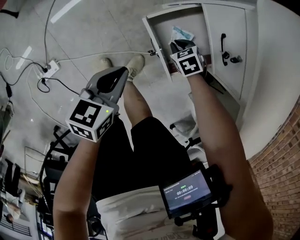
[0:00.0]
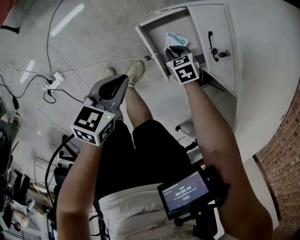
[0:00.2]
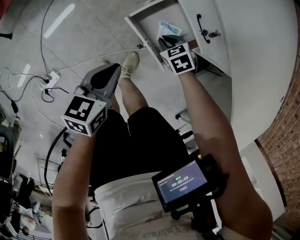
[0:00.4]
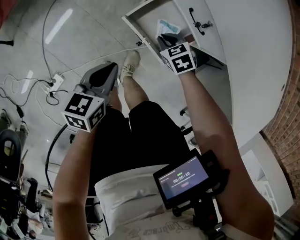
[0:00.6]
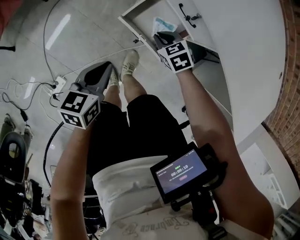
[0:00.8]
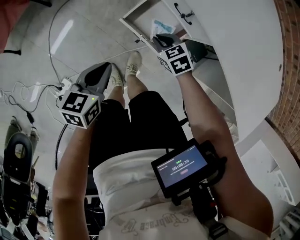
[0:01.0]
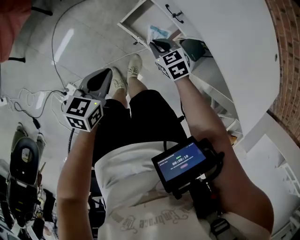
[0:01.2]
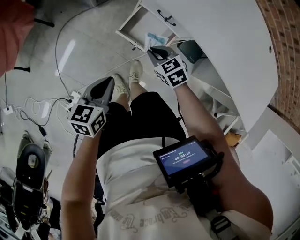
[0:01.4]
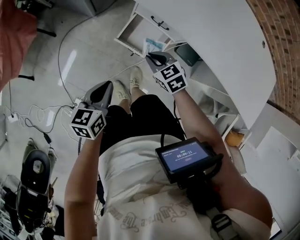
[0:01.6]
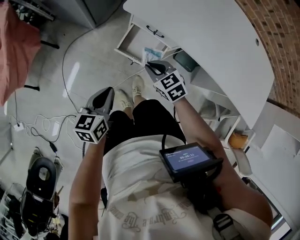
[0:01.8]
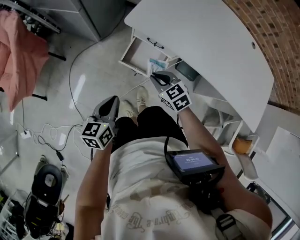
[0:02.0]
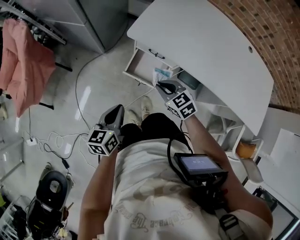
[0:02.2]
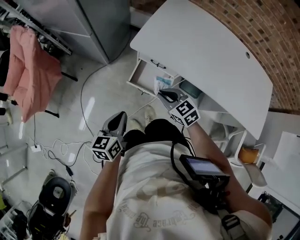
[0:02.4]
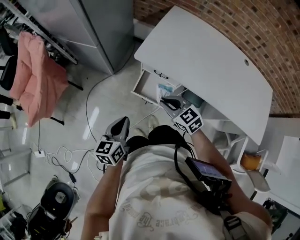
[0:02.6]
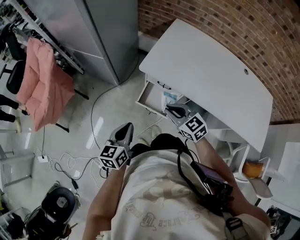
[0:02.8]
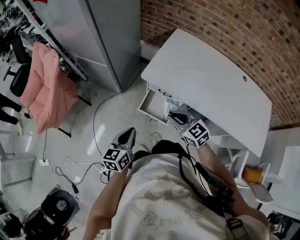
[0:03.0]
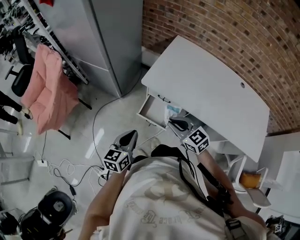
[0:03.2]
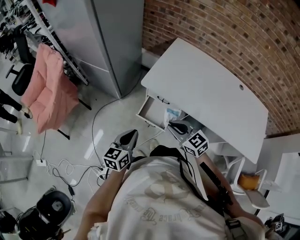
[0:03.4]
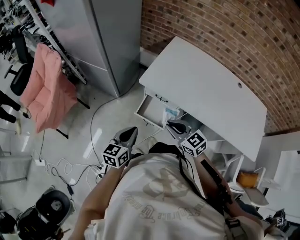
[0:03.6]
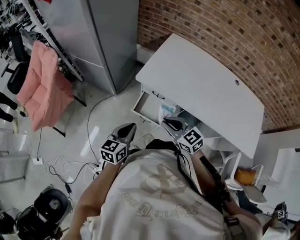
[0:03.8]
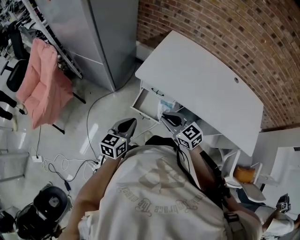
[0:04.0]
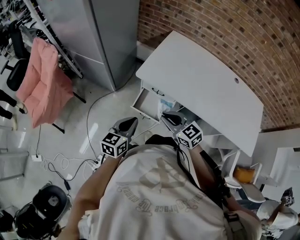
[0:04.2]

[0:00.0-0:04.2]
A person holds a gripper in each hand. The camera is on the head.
0:00.0 to 0:01.4: The right gripper moves upward, about 30 cm, and rotates about 30 degrees. Meanwhile the left gripper is displaced upward by roughly 20 cm.
0:01.4 to 0:02.8: Both grippers travel together upward, roughly 25 cm. The right gripper rotates approximately 20 degrees.
0:02.8 to 0:04.2: The right gripper goes some 5 cm upward. Meanwhile the left gripper moves to the right, approximately 5 cm.

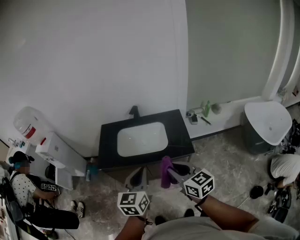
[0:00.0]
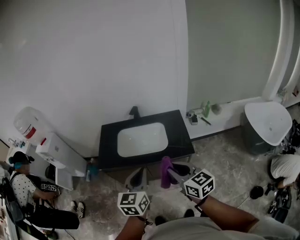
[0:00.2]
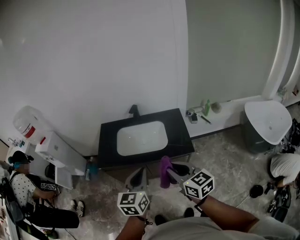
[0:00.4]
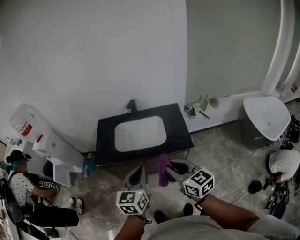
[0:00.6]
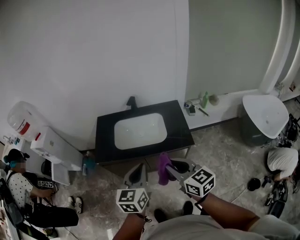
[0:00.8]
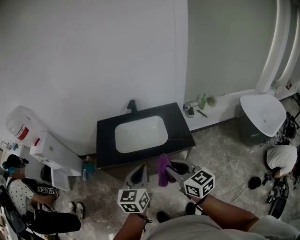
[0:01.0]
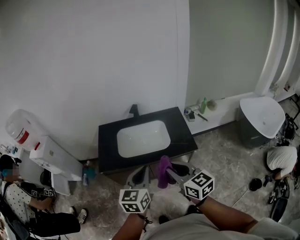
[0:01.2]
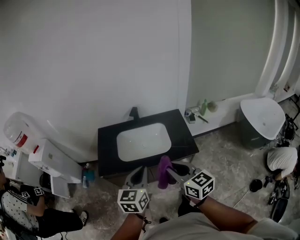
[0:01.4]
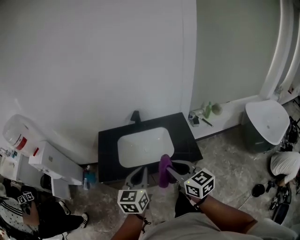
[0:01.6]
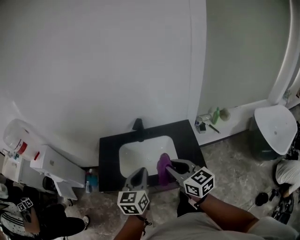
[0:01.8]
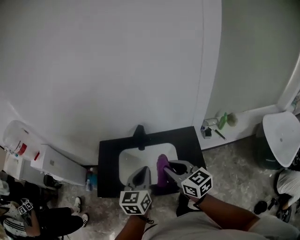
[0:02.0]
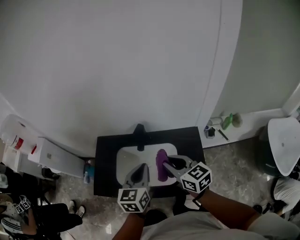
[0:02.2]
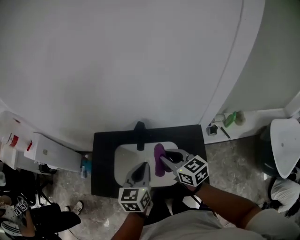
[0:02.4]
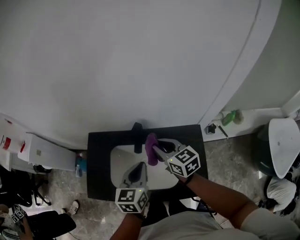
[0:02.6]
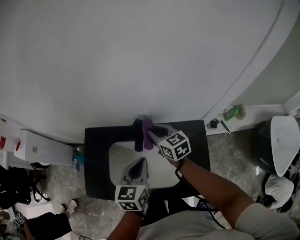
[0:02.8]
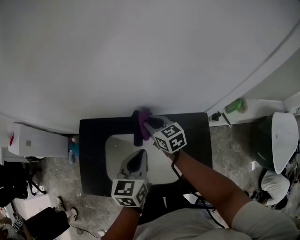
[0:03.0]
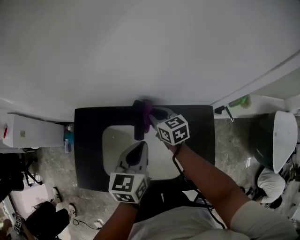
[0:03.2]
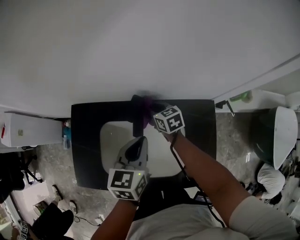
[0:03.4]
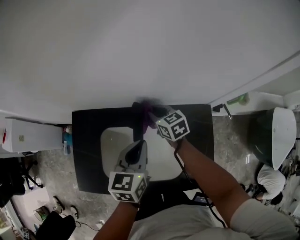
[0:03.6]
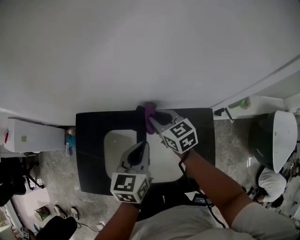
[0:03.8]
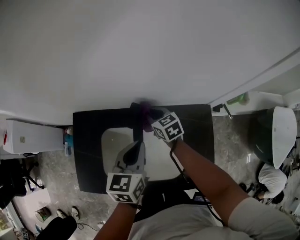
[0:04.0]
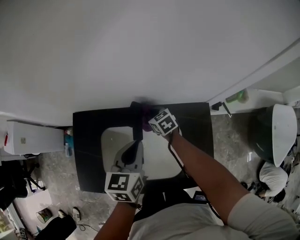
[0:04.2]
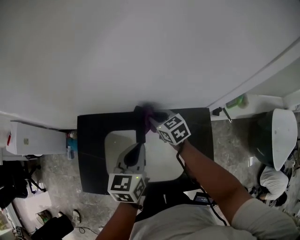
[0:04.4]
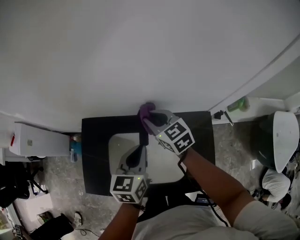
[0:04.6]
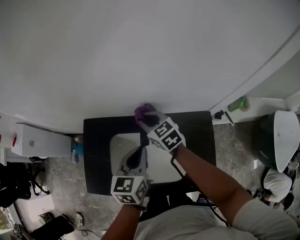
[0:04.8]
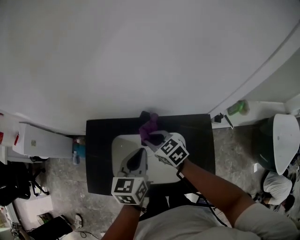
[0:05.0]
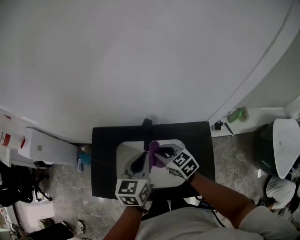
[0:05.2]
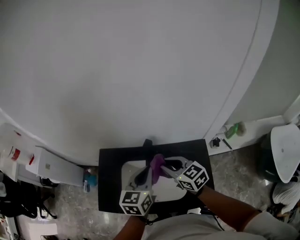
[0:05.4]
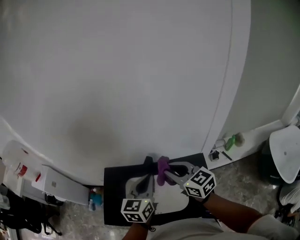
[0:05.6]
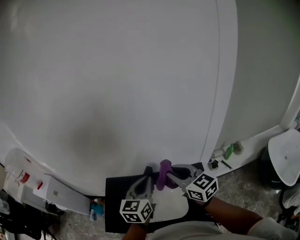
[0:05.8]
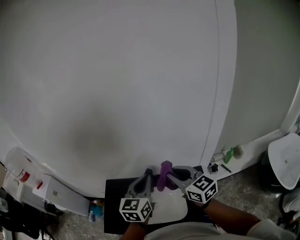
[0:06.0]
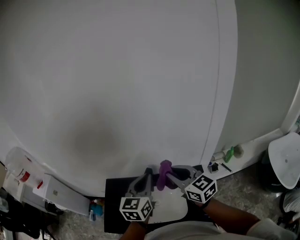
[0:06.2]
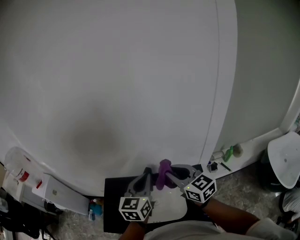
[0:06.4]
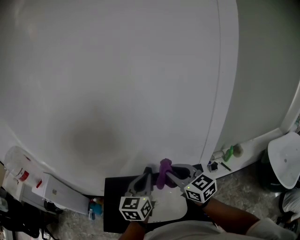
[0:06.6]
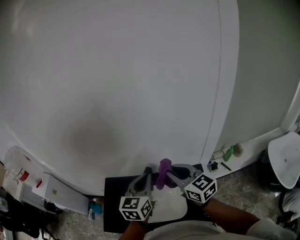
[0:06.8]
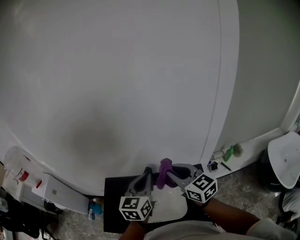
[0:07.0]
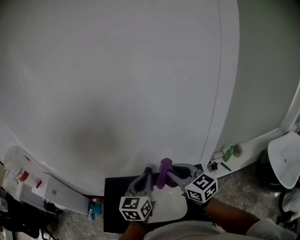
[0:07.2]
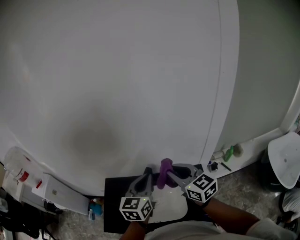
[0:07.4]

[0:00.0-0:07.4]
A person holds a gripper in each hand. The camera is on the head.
0:00.0 to 0:01.4: The left gripper shifts approximately 10 cm forward and to the left, while the right gripper is displaced to the left and forward by some 10 cm.
0:01.4 to 0:03.0: Both grippers are carried forward, approximately 50 cm.
0:03.0 to 0:04.4: The right gripper goes up and down, some 15 cm each way, reversing 3 times.
0:04.4 to 0:06.0: The right gripper swings up and down, roughly 35 cm each way, with 2 reversals, and swivels approximately 30 degrees; the left gripper heads upward, covering roughly 25 cm, and changes its angle by approximately 20 degrees.
0:06.0 to 0:07.4: Both grippers stay put.

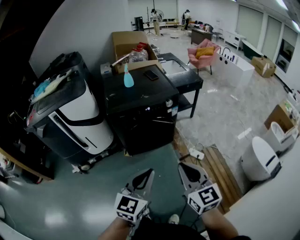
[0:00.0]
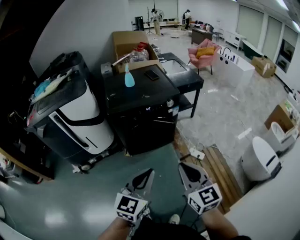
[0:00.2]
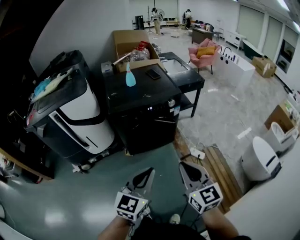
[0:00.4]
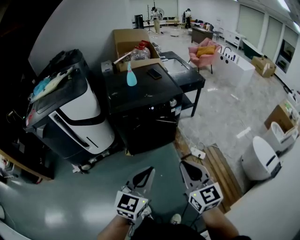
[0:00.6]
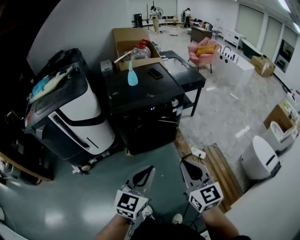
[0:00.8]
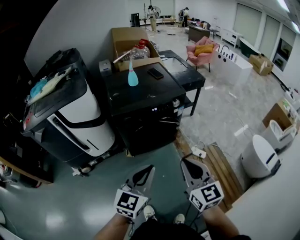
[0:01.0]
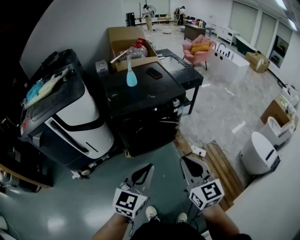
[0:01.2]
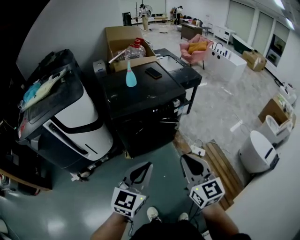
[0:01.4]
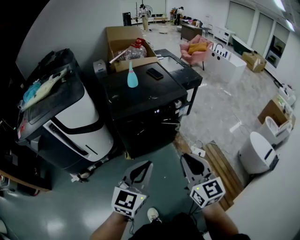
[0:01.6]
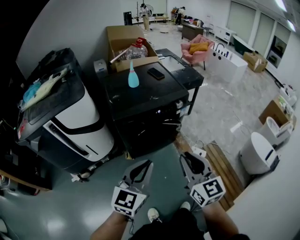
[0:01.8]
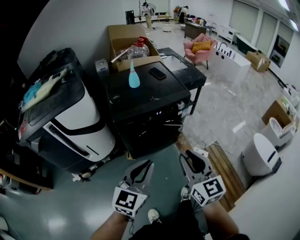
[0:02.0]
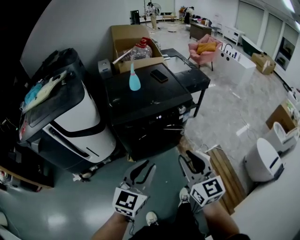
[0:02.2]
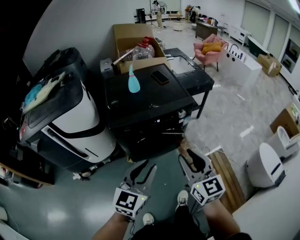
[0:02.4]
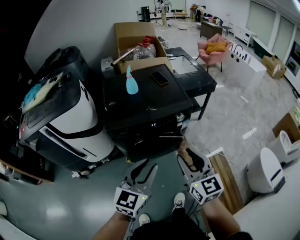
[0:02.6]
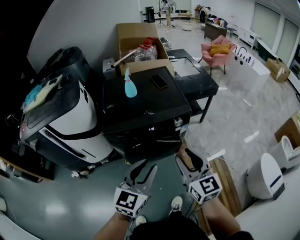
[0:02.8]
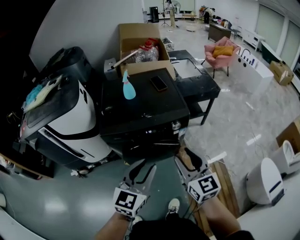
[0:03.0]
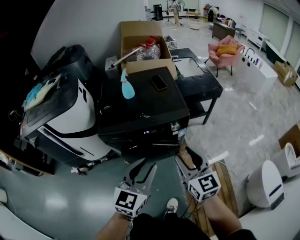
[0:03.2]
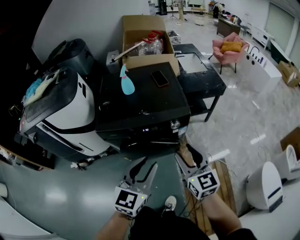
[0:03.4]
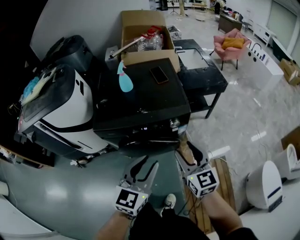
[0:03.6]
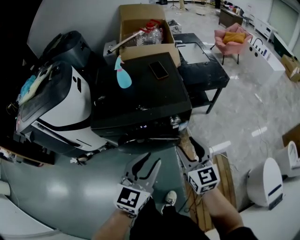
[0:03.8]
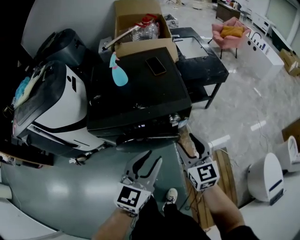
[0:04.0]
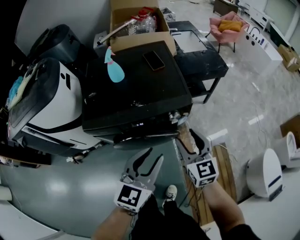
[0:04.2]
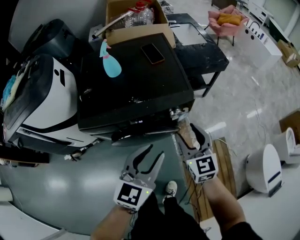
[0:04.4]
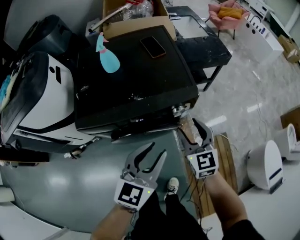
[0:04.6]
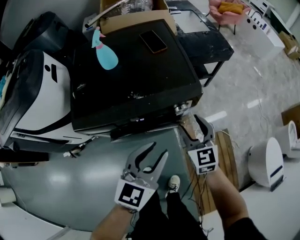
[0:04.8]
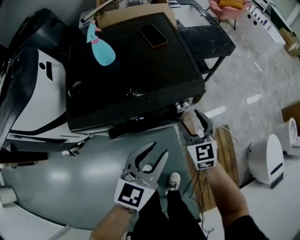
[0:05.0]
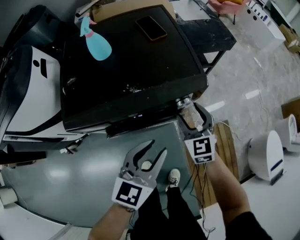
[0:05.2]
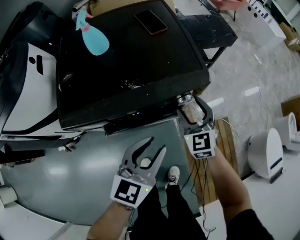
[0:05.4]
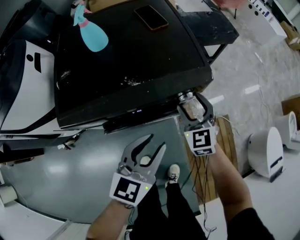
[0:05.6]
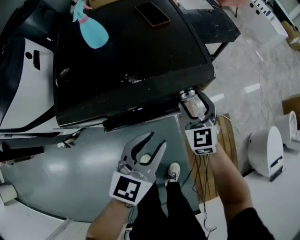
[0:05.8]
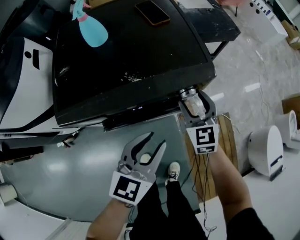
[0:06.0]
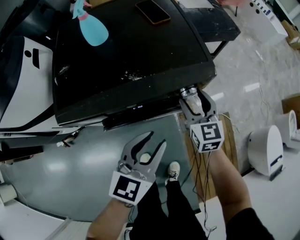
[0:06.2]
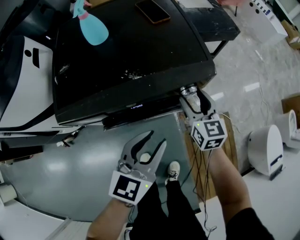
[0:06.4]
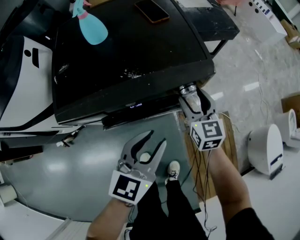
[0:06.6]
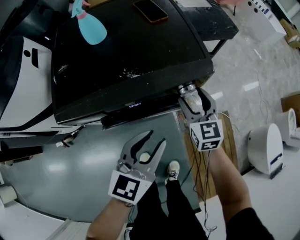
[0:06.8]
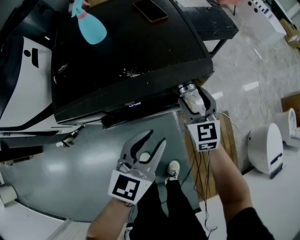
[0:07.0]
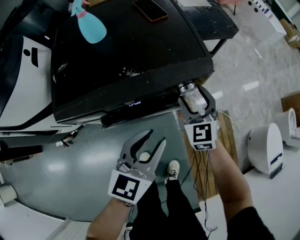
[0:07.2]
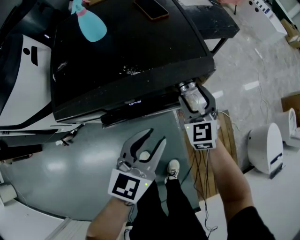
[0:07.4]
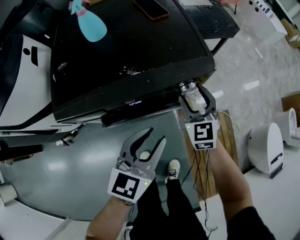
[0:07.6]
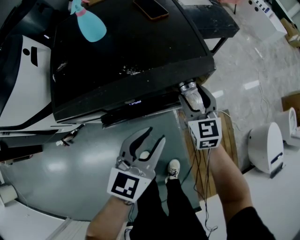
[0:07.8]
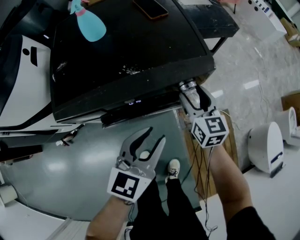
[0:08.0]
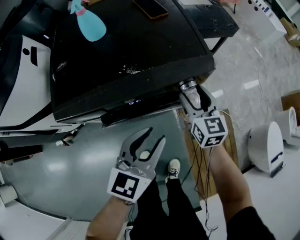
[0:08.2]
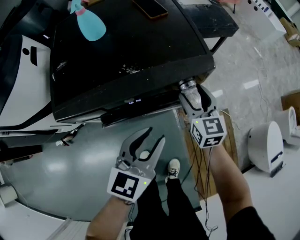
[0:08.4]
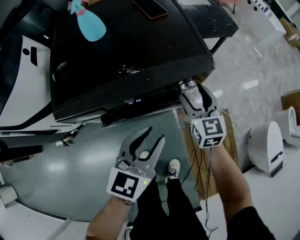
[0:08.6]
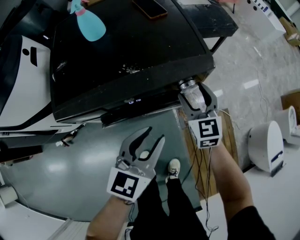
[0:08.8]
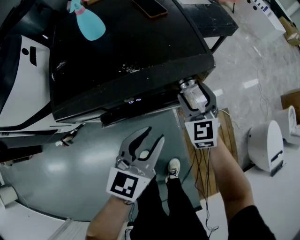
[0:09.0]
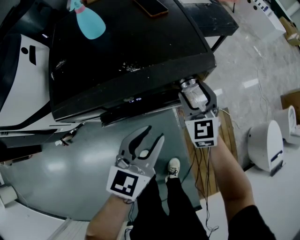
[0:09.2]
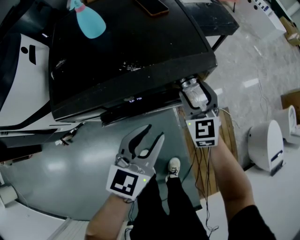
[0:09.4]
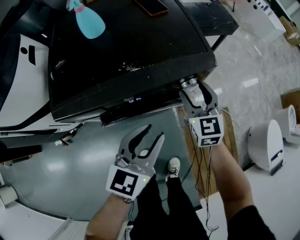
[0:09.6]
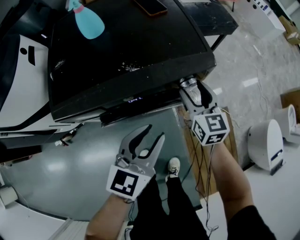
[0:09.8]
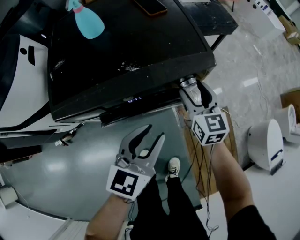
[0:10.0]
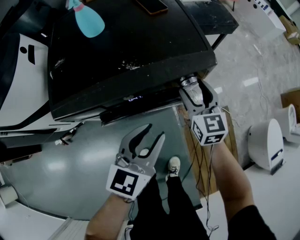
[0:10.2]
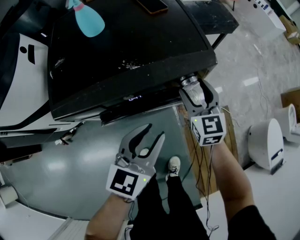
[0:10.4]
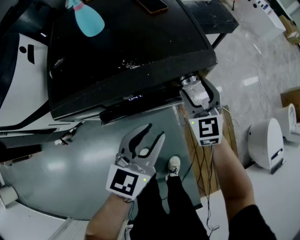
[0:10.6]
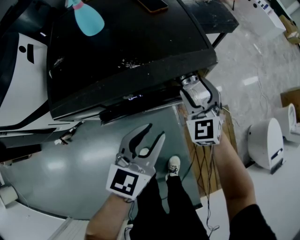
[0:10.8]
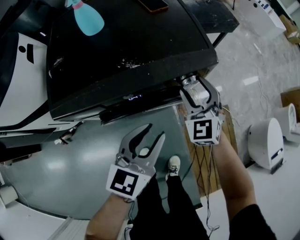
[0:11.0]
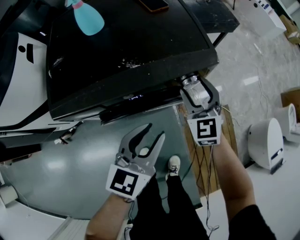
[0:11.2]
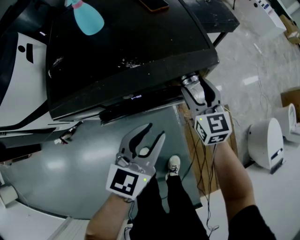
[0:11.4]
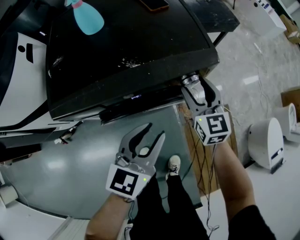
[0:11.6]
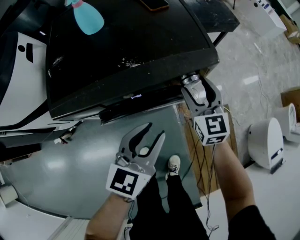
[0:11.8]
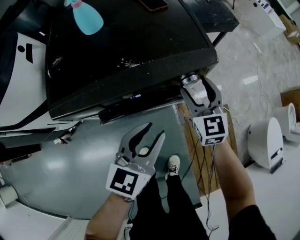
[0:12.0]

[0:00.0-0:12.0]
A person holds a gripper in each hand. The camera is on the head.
0:00.0 to 0:01.6: Both grippers travel together to the left and forward, about 15 cm.
0:01.6 to 0:03.0: The two grippers go some 25 cm forward and to the right. The right gripper opens up; the left gripper opens its fingers.
0:03.0 to 0:04.4: The grippers both shift forward and downward by some 20 cm.
0:04.4 to 0:06.0: The left gripper moves downward, some 15 cm. The right gripper is displaced downward and forward by about 20 cm.
0:06.0 to 0:07.6: There are only small adjustments of the grippers.
